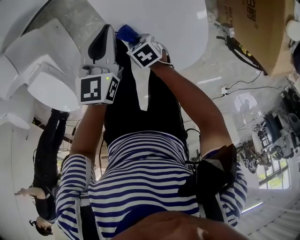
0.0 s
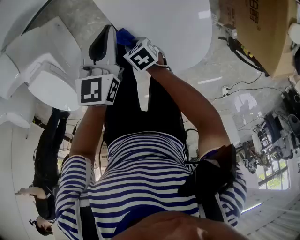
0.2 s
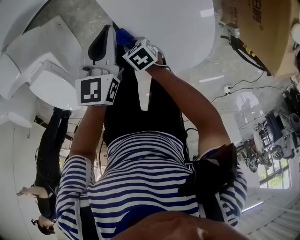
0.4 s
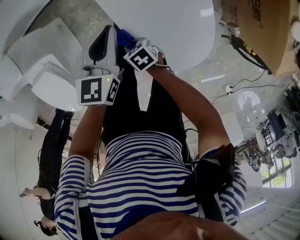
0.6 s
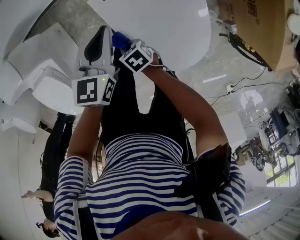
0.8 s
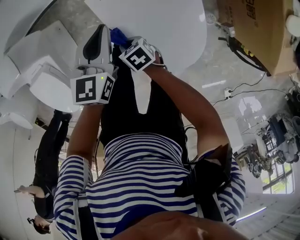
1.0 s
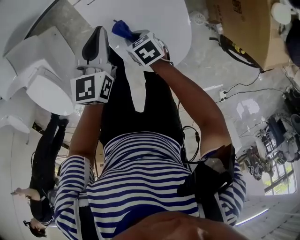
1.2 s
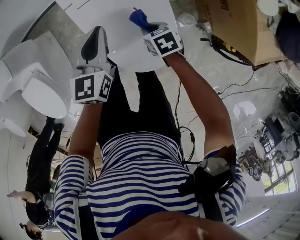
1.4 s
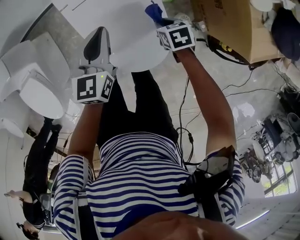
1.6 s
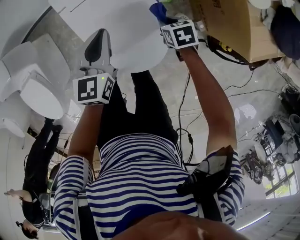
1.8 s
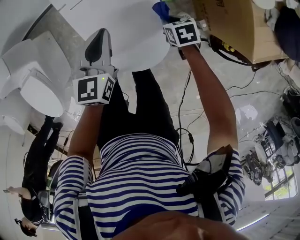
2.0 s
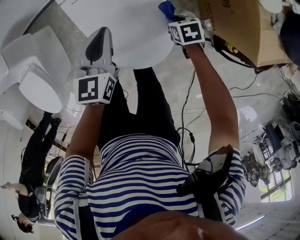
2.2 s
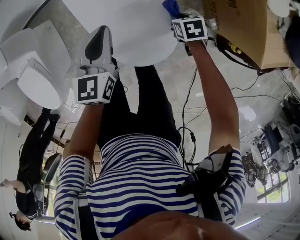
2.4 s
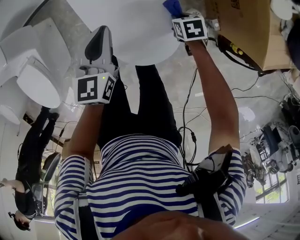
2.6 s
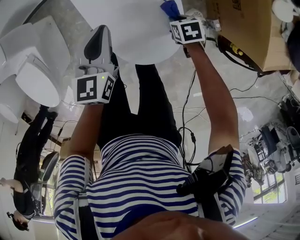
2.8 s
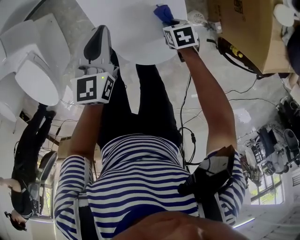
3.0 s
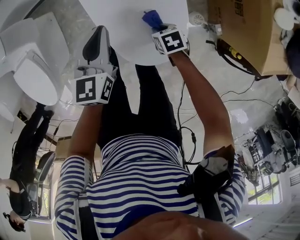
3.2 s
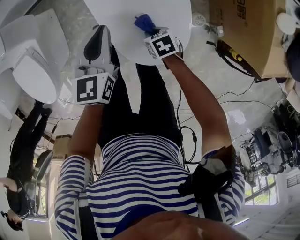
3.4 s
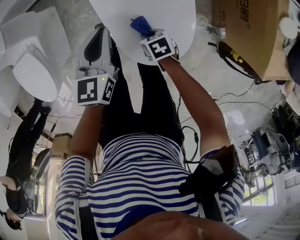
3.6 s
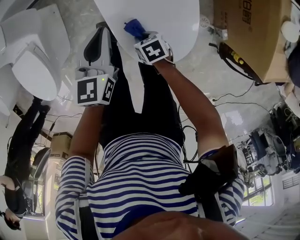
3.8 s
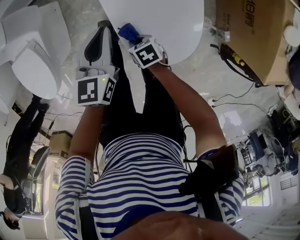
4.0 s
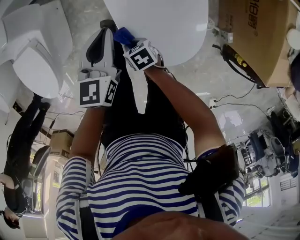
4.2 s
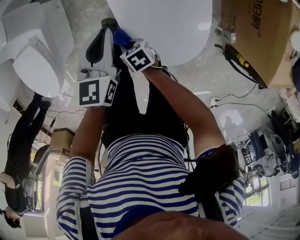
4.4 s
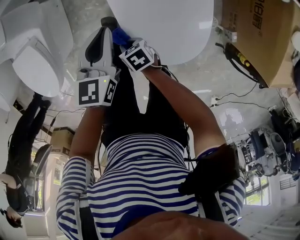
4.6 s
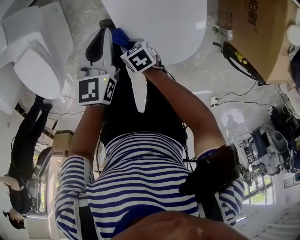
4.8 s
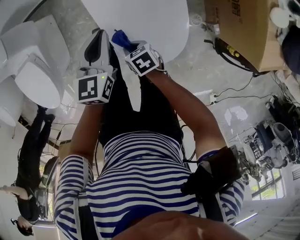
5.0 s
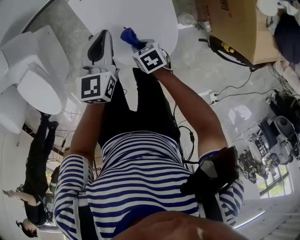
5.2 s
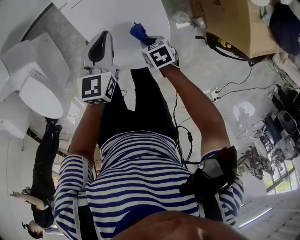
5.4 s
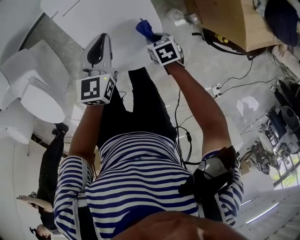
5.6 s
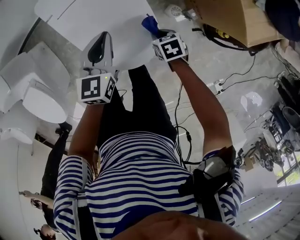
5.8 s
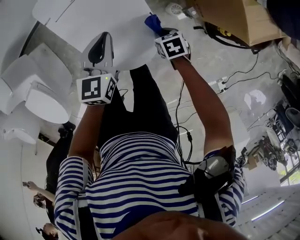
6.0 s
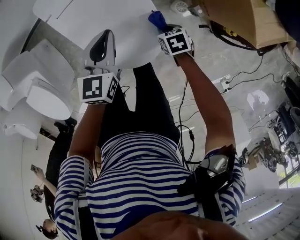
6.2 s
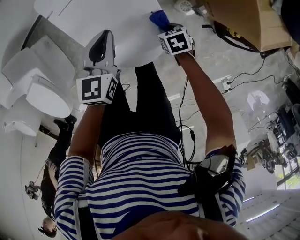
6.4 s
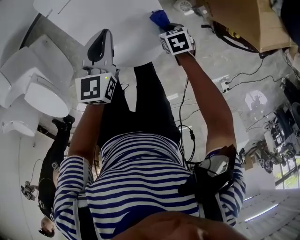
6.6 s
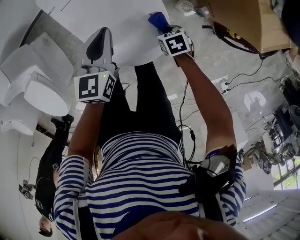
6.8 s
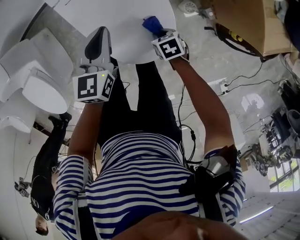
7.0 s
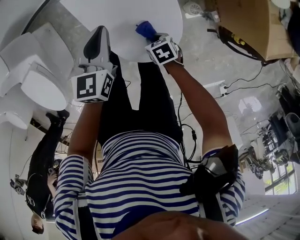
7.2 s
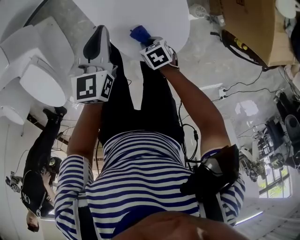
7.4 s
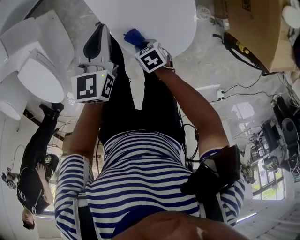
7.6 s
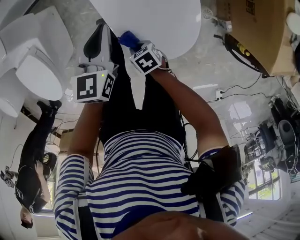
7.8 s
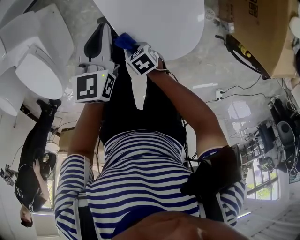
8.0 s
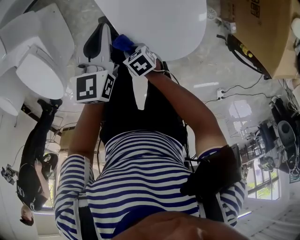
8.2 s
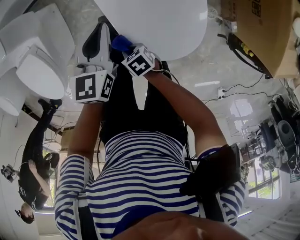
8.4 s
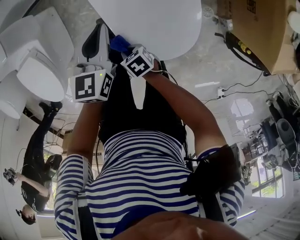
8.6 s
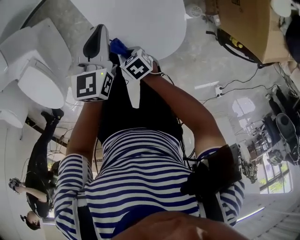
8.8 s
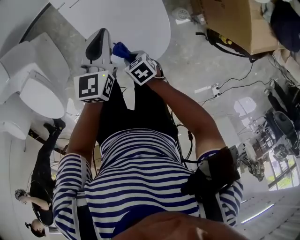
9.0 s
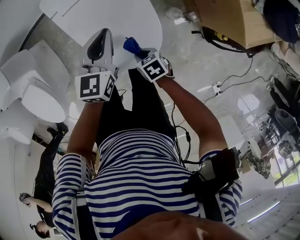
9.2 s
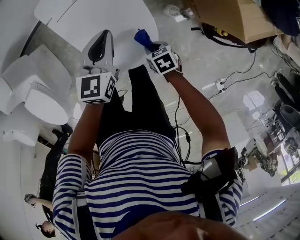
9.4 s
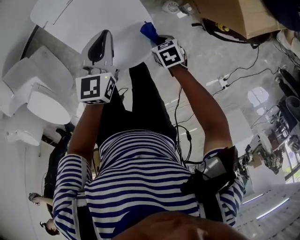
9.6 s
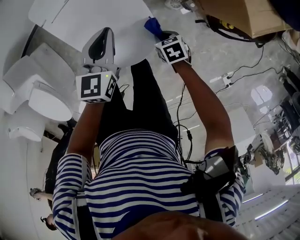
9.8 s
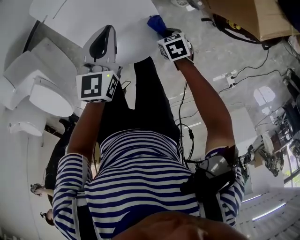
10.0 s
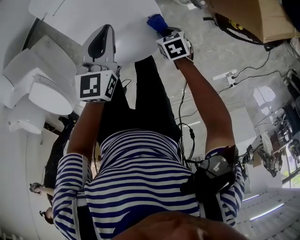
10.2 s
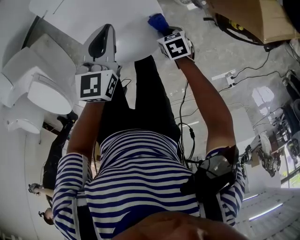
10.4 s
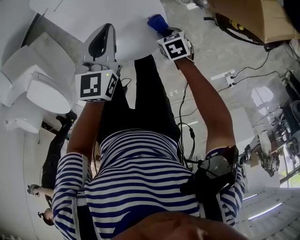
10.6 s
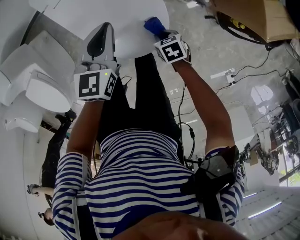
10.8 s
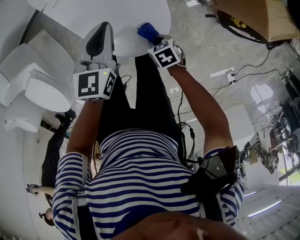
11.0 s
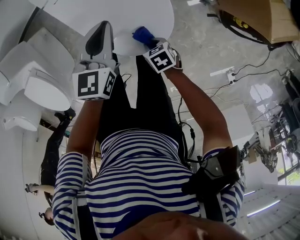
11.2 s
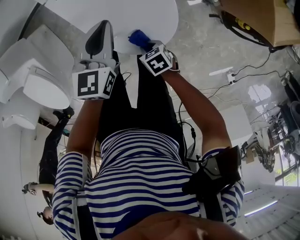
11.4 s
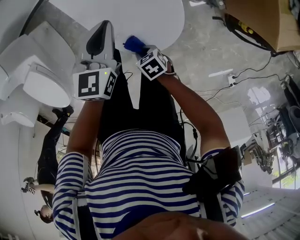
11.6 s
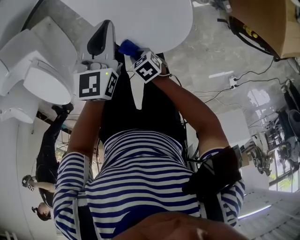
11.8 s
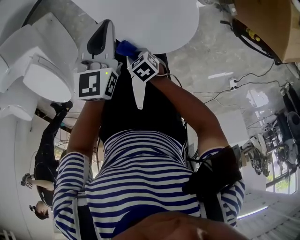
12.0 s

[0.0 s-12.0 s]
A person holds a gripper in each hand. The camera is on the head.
0.0 to 1.6 s: The right gripper shifts some 30 cm to the right, and swivels about 20 degrees; the left gripper goes approximately 15 cm backward, to the right and upward.
1.6 to 3.0 s: The right gripper heads downward, covering about 5 cm. The left gripper is displaced to the left by approximately 5 cm.
3.0 to 4.4 s: The left gripper travels to the left and forward by approximately 10 cm. Meanwhile the right gripper moves to the left, approximately 30 cm, and turns by about 20 degrees.
4.4 to 6.0 s: The left gripper changes place by some 25 cm, and turns by about 20 degrees; the right gripper shifts by about 40 cm, and rotates some 30 degrees.
6.0 to 7.6 s: The left gripper shifts some 15 cm to the left. The right gripper is displaced to the left by some 25 cm, and swivels roughly 20 degrees.
7.6 to 9.0 s: The right gripper is displaced upward by some 10 cm, and travels to the left and back again, about 10 cm each way. Meanwhile the left gripper shifts approximately 5 cm to the right.
9.0 to 10.4 s: The left gripper shifts roughly 10 cm to the right; the right gripper shifts about 20 cm to the right.
10.4 to 12.0 s: The left gripper heads to the left and forward, covering approximately 15 cm; the right gripper travels to the left by some 30 cm, and swivels some 20 degrees.

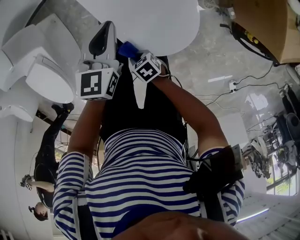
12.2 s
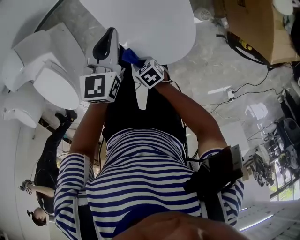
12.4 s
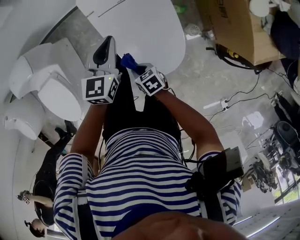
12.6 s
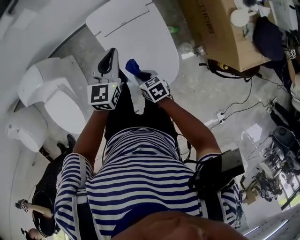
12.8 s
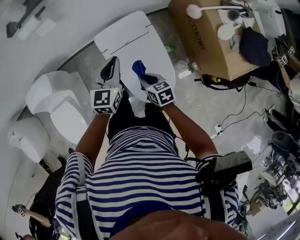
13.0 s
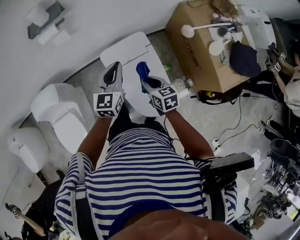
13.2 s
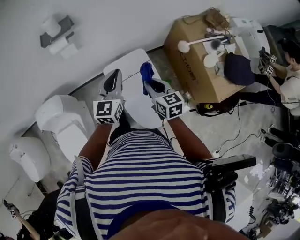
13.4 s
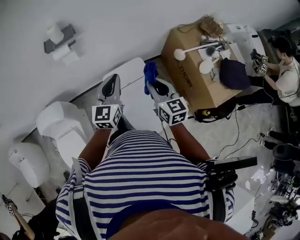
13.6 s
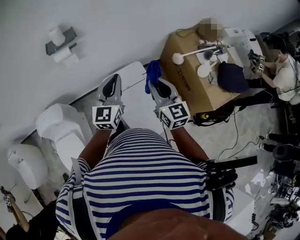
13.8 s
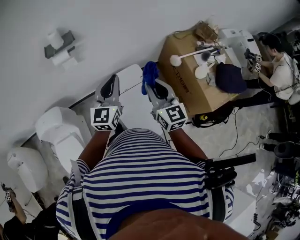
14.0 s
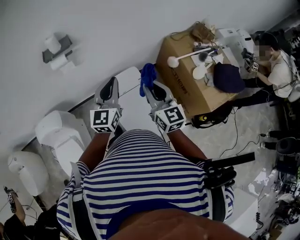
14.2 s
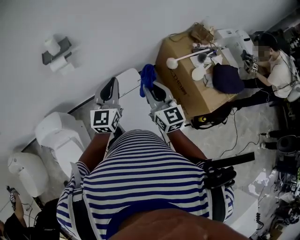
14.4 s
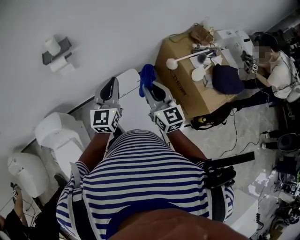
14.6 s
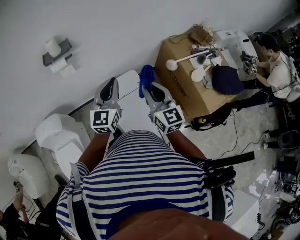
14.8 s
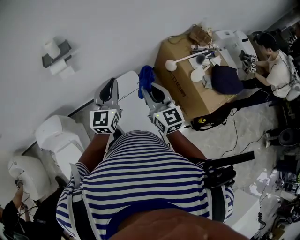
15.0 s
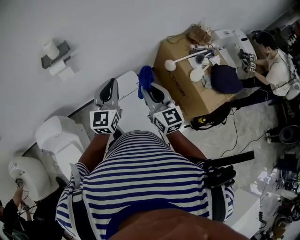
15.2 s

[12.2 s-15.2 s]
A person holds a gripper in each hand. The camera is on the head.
12.2 to 13.8 s: Both grippers move upward, some 60 cm. The left gripper tilts its fingers some 40 degrees upward; the right gripper points its fingers some 50 degrees further upward.
13.8 to 15.2 s: There are only small adjustments of the grippers.

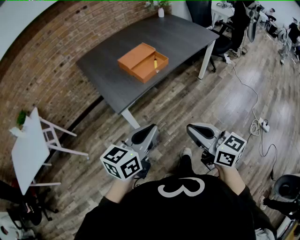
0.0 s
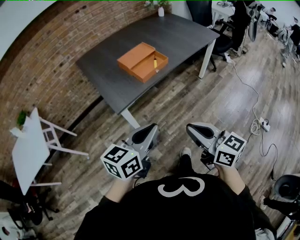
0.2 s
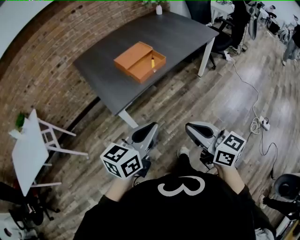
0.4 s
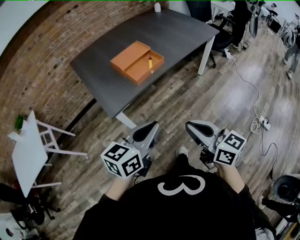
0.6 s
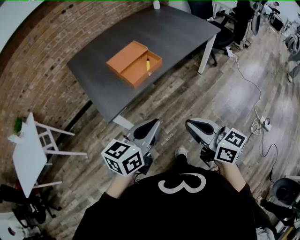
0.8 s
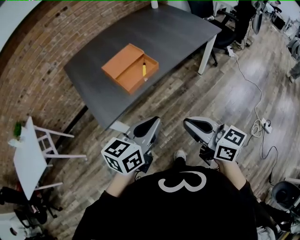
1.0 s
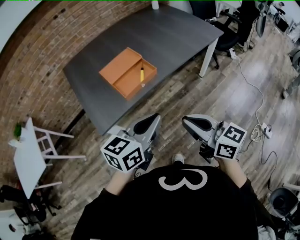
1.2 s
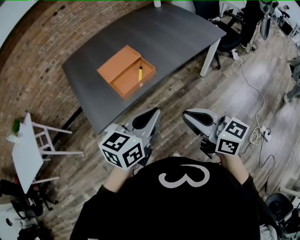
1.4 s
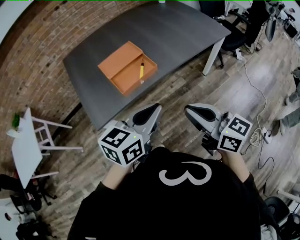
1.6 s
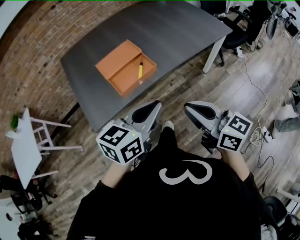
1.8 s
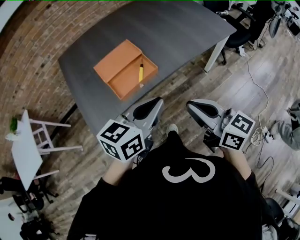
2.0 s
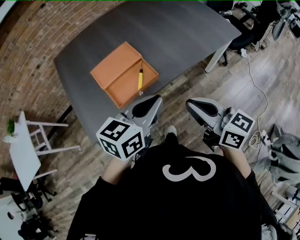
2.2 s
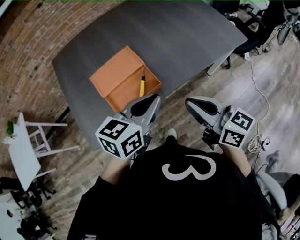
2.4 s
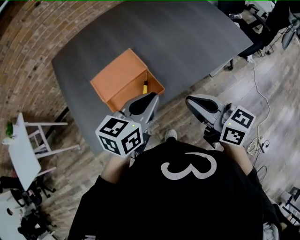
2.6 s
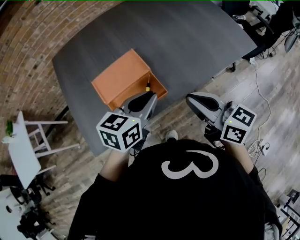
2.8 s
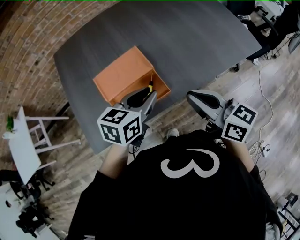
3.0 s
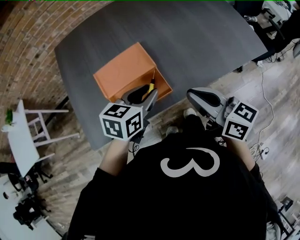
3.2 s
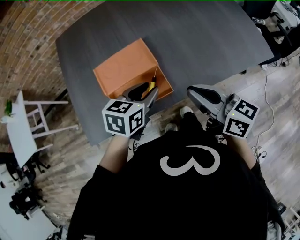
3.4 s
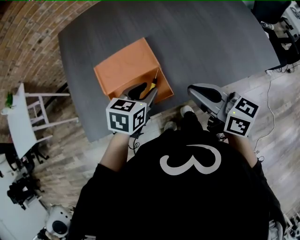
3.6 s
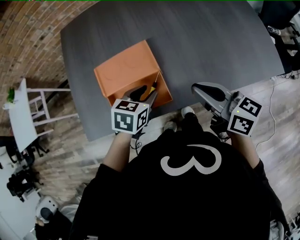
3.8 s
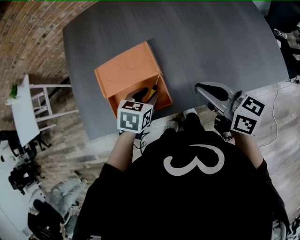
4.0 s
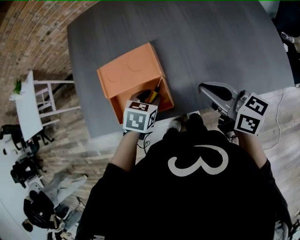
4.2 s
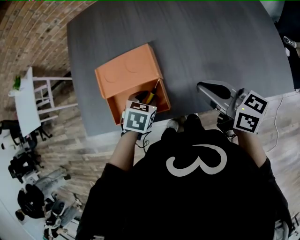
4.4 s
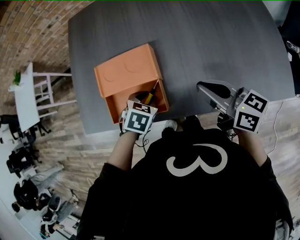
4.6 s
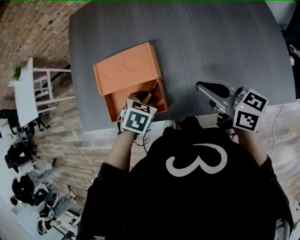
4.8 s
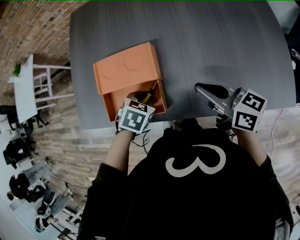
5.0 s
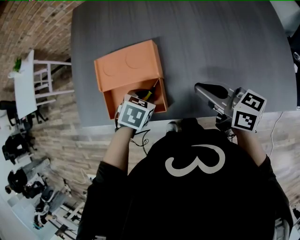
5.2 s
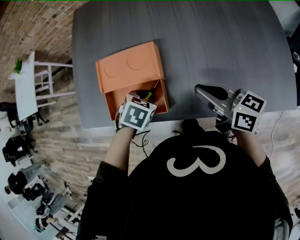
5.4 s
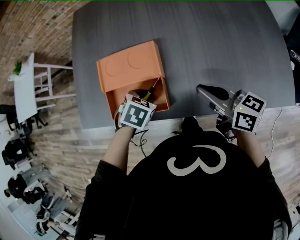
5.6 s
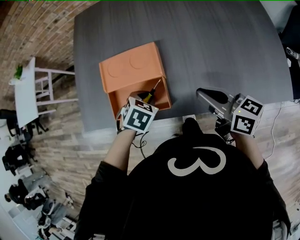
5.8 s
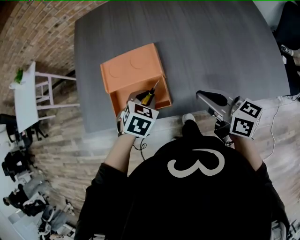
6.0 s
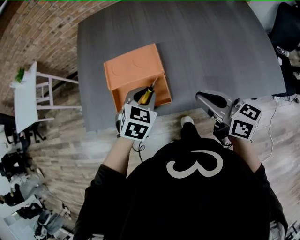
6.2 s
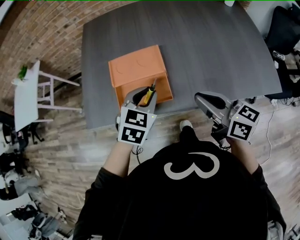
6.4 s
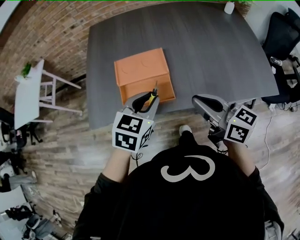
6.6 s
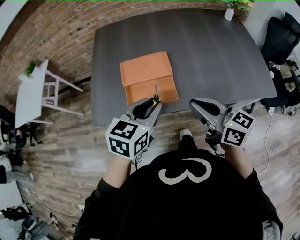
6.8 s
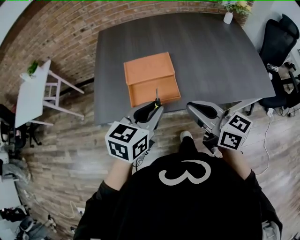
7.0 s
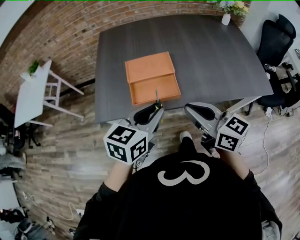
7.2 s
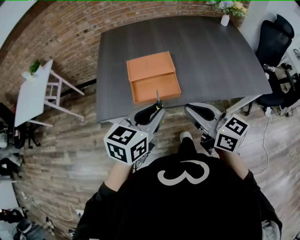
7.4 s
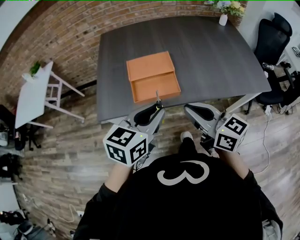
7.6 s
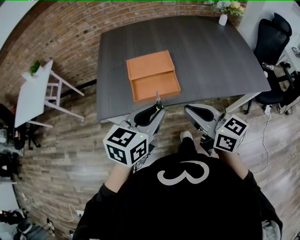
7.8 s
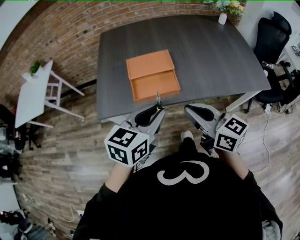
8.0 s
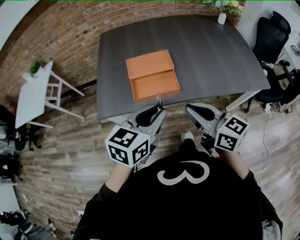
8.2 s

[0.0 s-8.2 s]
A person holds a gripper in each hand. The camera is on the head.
0.0 to 1.6 s: The grippers both shift forward and to the right by about 25 cm.
1.6 to 3.2 s: The right gripper goes some 25 cm forward. Meanwhile the left gripper heads forward and downward, covering some 30 cm, turns by approximately 20 degrees, and opens up.
3.2 to 5.0 s: The left gripper goes roughly 15 cm downward, and points its fingers approximately 30 degrees further downward, while the right gripper changes place by about 15 cm, and turns by approximately 30 degrees.
5.0 to 6.6 s: The left gripper travels upward by about 15 cm, and tilts its fingers roughly 30 degrees upward. Meanwhile the right gripper moves backward, to the left and upward, about 15 cm.
6.6 to 8.2 s: The left gripper is displaced backward and upward by roughly 15 cm. Meanwhile the right gripper travels backward and to the left by some 10 cm.
